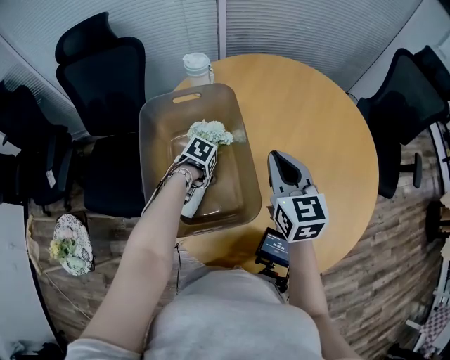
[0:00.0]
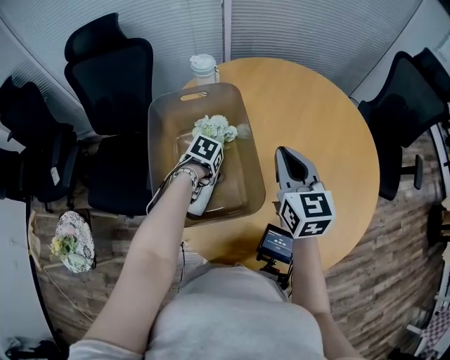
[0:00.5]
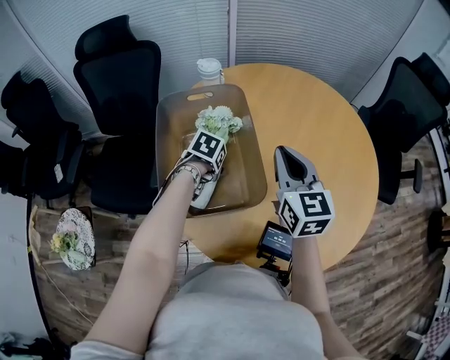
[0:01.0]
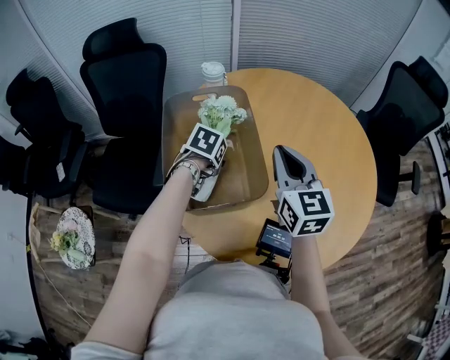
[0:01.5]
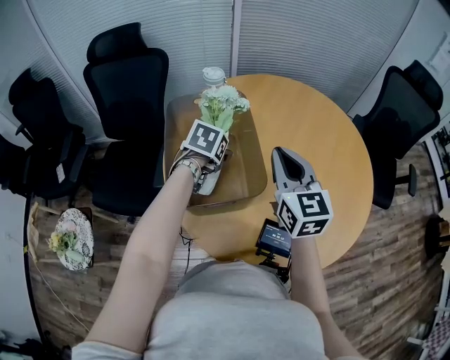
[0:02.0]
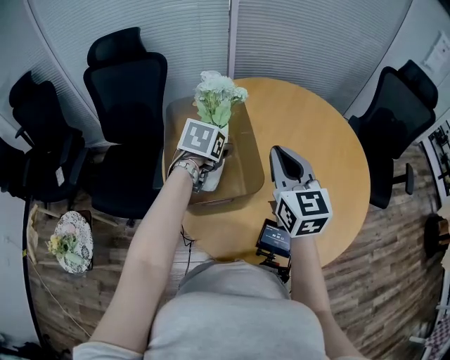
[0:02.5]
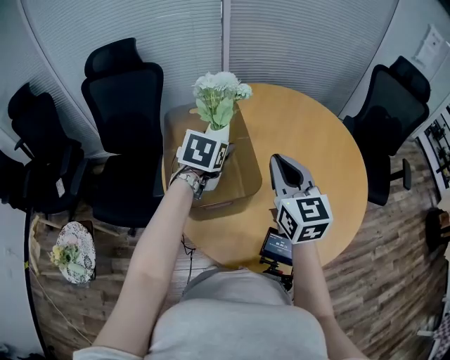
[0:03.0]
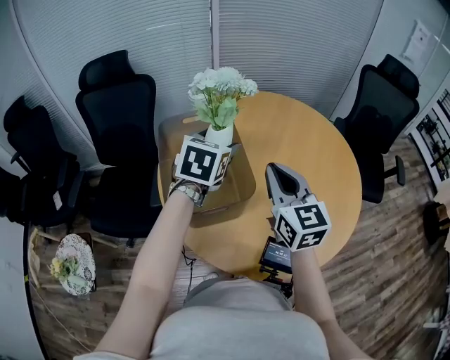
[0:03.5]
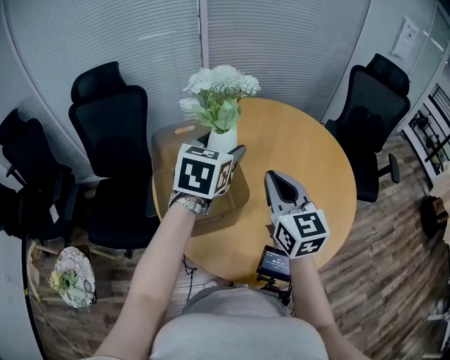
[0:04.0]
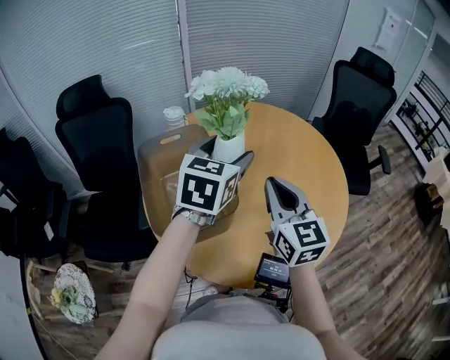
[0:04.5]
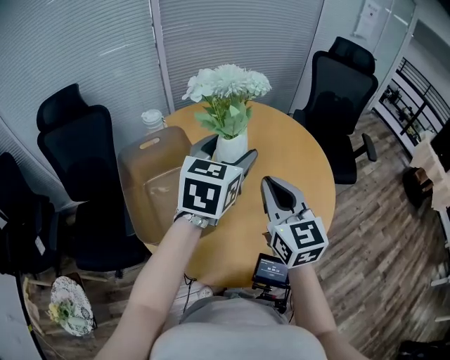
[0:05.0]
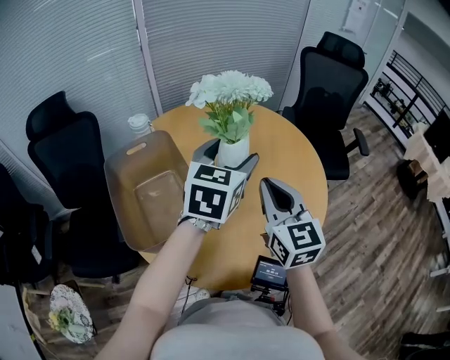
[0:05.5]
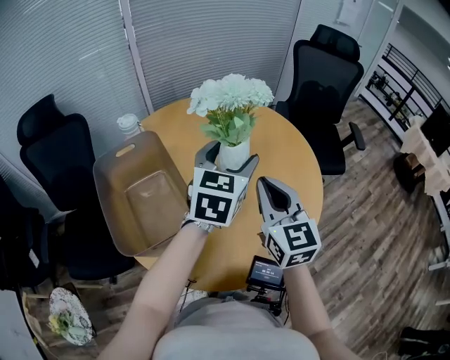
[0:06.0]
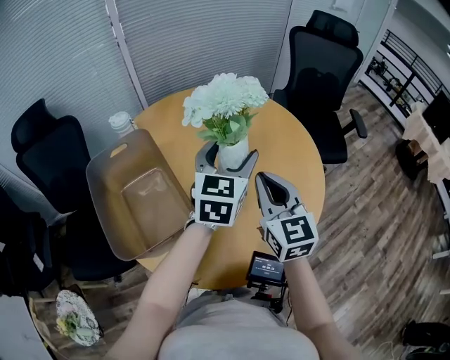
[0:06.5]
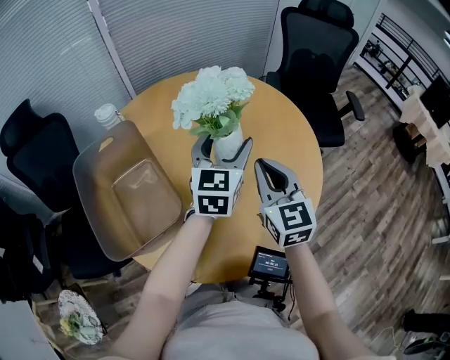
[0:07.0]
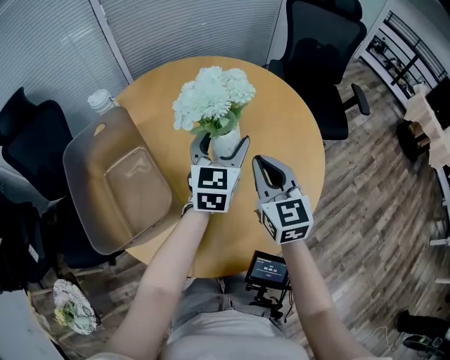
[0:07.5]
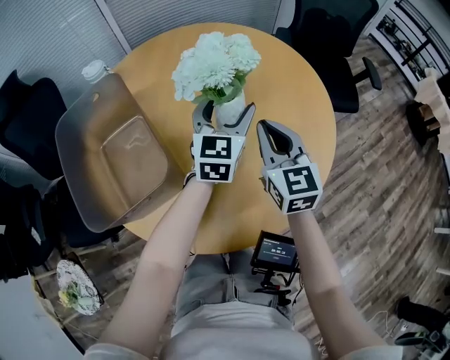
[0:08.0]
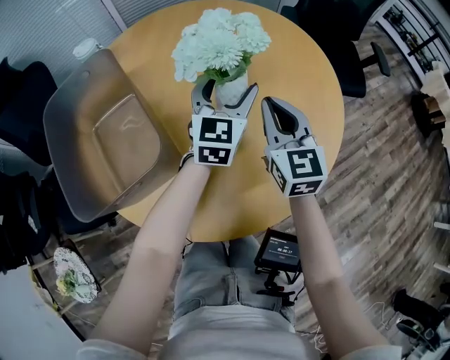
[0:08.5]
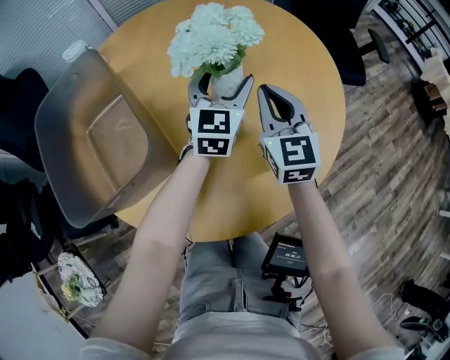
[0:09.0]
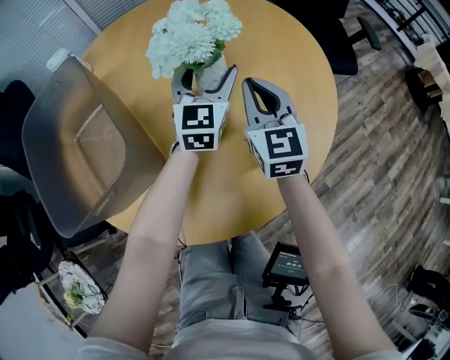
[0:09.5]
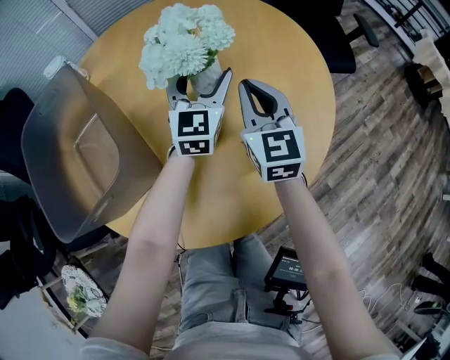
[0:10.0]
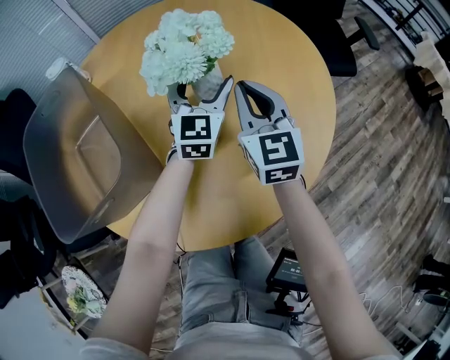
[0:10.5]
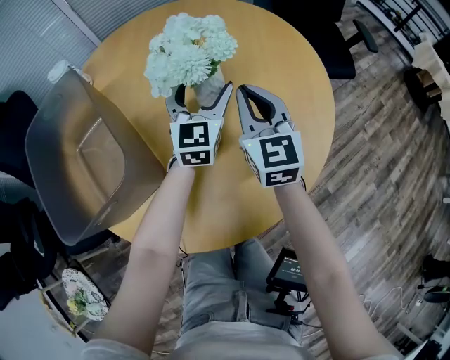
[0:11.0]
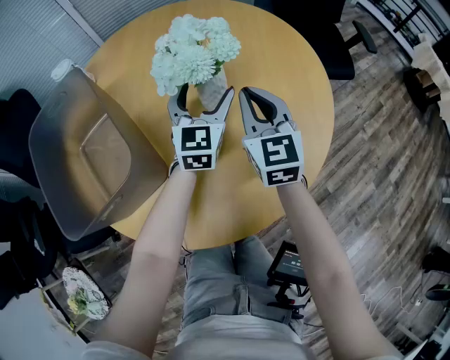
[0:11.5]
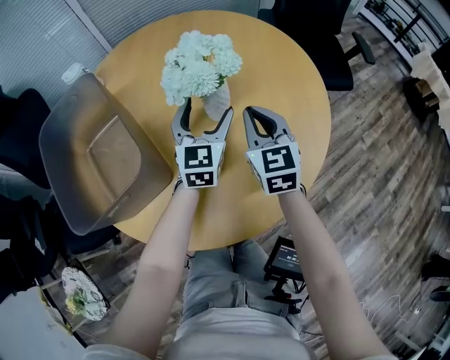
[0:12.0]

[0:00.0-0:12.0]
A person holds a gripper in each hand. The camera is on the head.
0:00.0 to 0:02.0: The left gripper heads upward, covering roughly 15 cm, and turns by approximately 30 degrees. The right gripper shifts approximately 5 cm upward.
0:02.0 to 0:04.0: The left gripper moves upward and to the right, some 20 cm, and tips its fingers upward by approximately 30 degrees; the right gripper moves backward, roughly 5 cm.
0:04.0 to 0:06.0: The right gripper shifts approximately 10 cm to the right. The left gripper moves to the right, about 20 cm.
0:06.0 to 0:08.0: The right gripper shifts about 15 cm downward and forward. Meanwhile the left gripper heads downward, covering roughly 15 cm.
0:08.0 to 0:10.0: The grippers both shift downward by approximately 5 cm.
0:10.0 to 0:12.0: The left gripper shifts by approximately 5 cm.

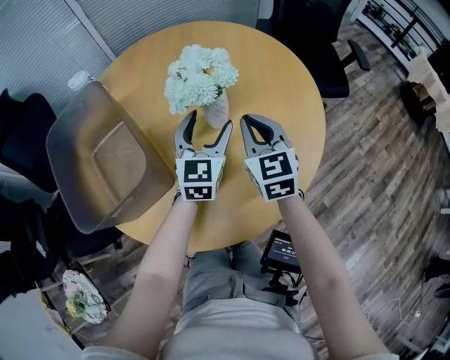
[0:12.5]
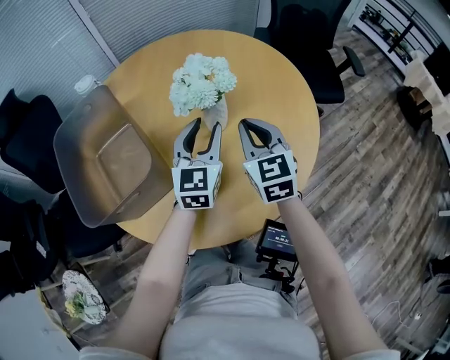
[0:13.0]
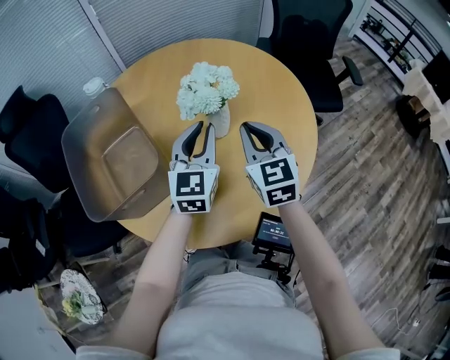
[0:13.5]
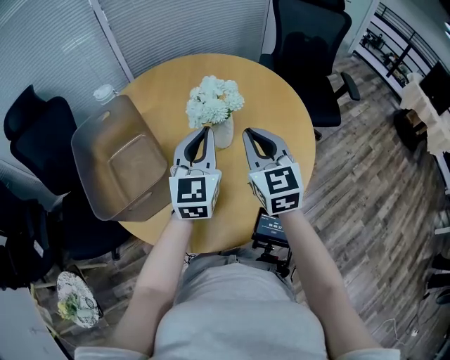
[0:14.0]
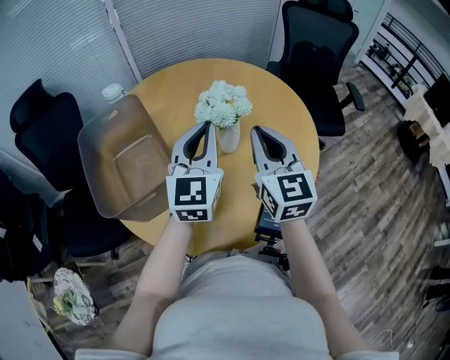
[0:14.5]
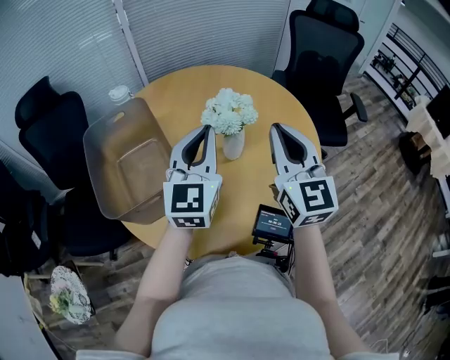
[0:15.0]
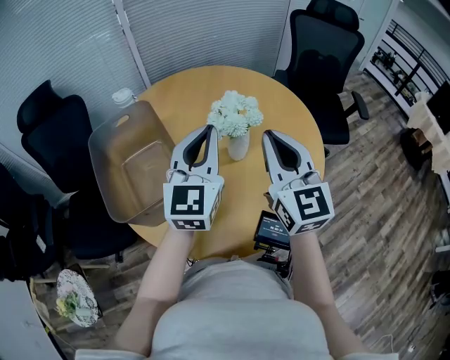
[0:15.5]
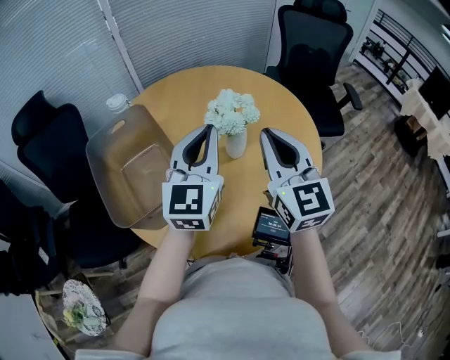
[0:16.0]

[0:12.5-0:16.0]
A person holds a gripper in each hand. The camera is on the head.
0:12.5 to 0:14.5: Both grippers travel together upward, roughly 15 cm. The left gripper closes.
0:14.5 to 0:16.0: The right gripper shifts roughly 5 cm upward.

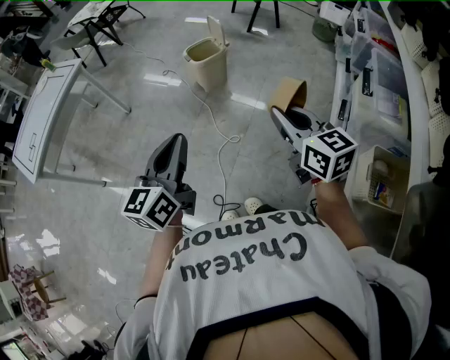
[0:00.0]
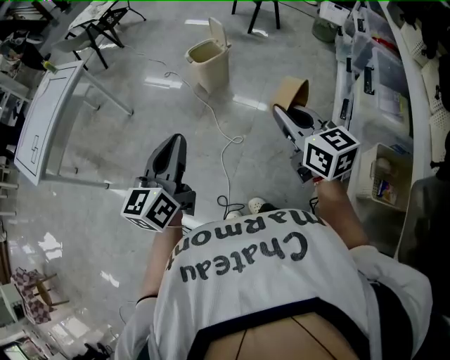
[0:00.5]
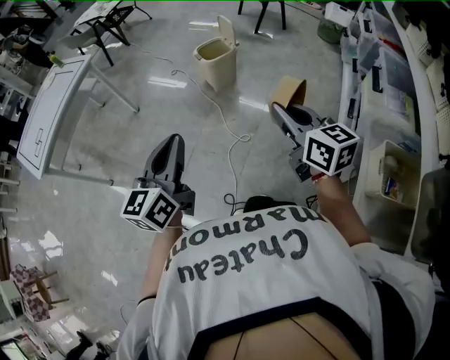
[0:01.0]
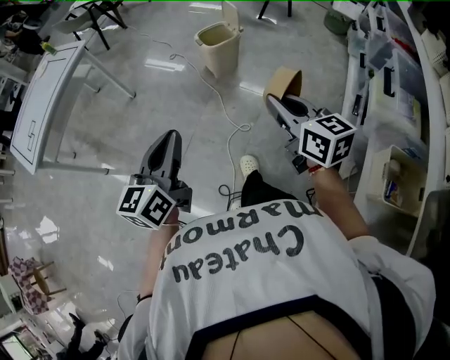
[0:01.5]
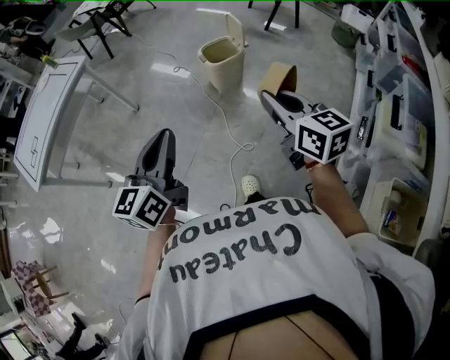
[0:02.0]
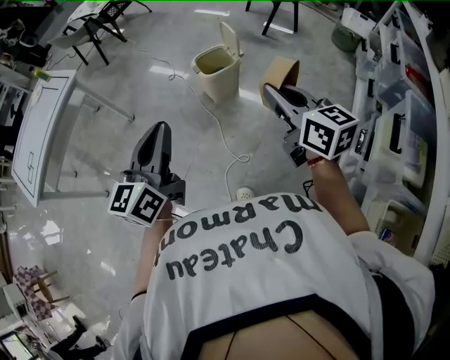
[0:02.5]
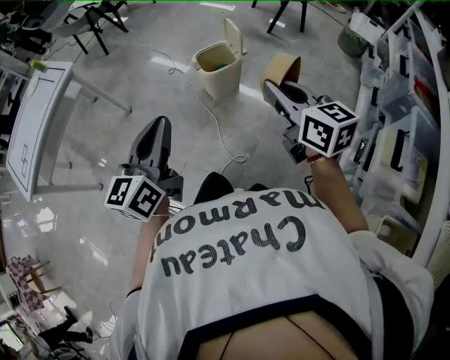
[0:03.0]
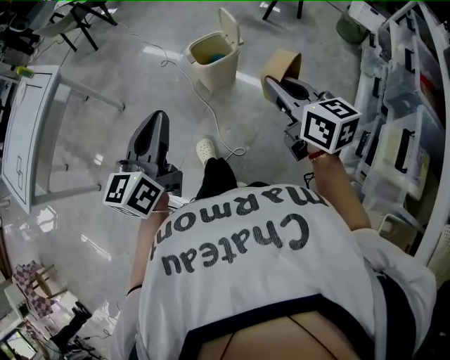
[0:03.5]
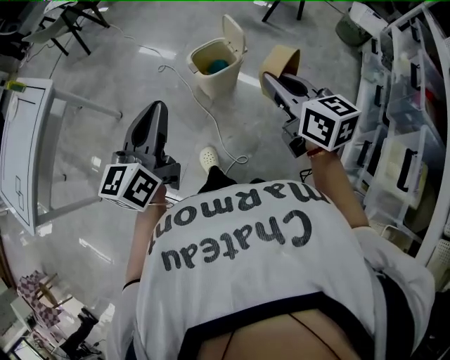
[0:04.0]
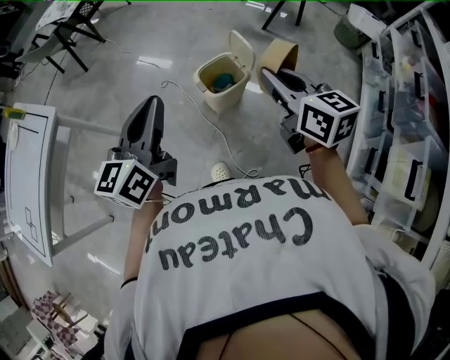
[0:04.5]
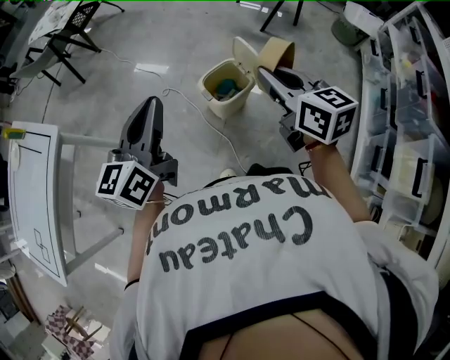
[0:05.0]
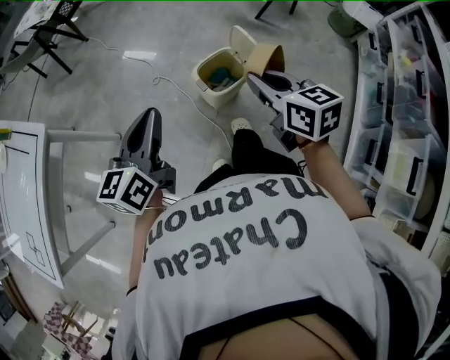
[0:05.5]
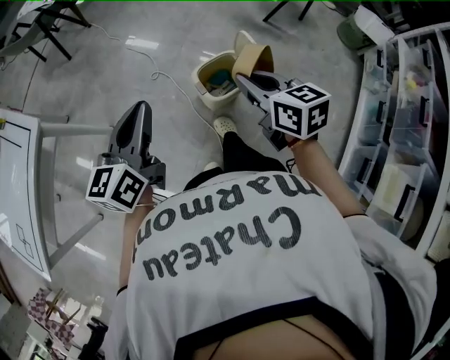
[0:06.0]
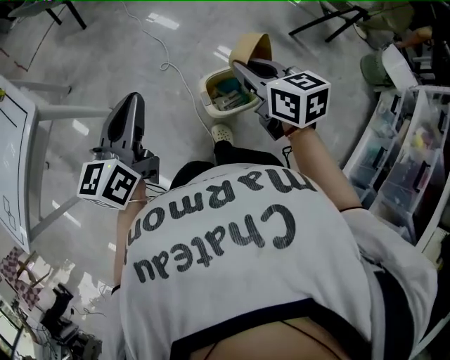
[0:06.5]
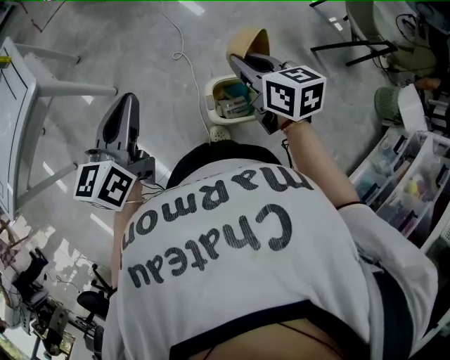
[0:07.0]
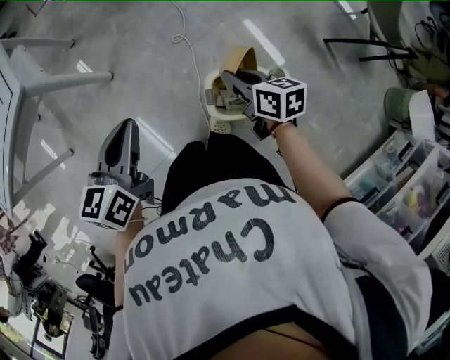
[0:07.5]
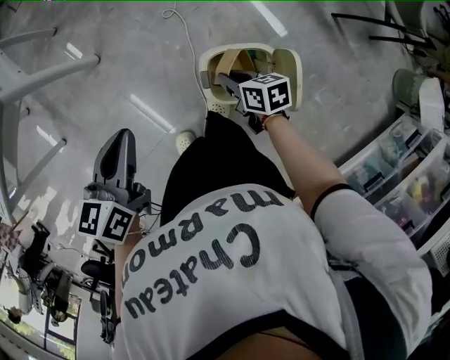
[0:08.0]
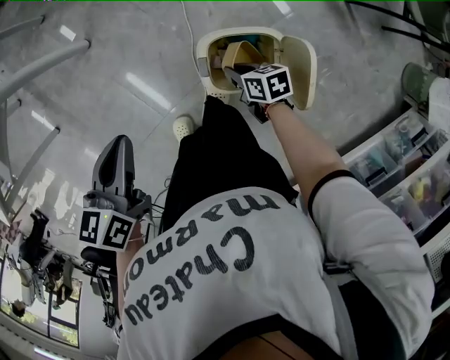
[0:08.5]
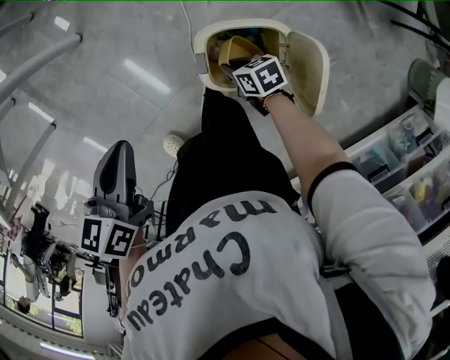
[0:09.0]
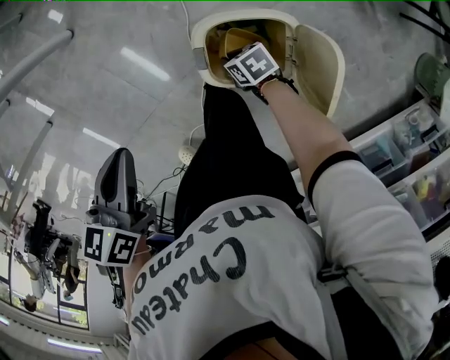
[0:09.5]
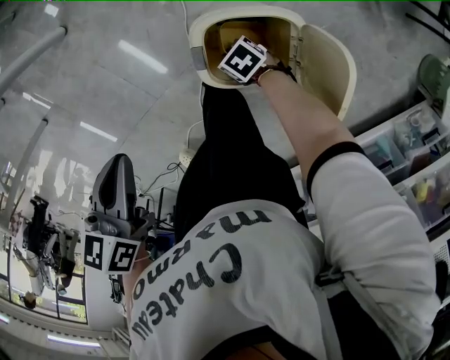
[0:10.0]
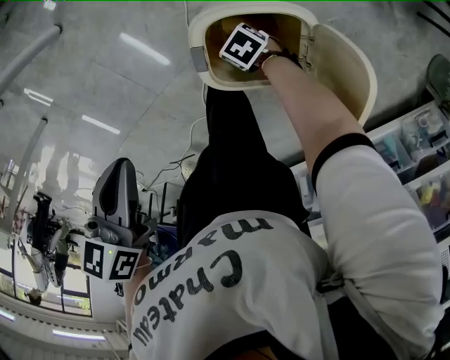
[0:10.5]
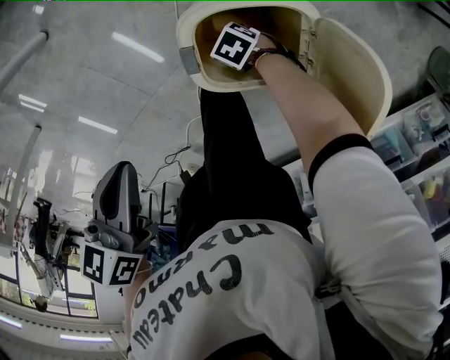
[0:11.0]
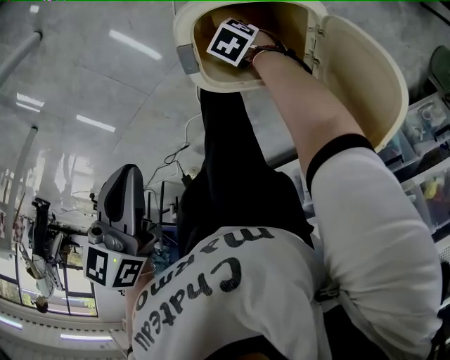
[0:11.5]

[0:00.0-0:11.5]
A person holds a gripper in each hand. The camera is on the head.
0:00.0 to 0:02.0: The two grippers go about 15 cm forward and to the left.
0:02.0 to 0:04.0: Both grippers travel together forward, approximately 30 cm.
0:04.0 to 0:06.0: The two grippers go about 25 cm forward and to the left.
0:06.0 to 0:07.5: The right gripper ends up approximately 30 cm from where it was, and swivels approximately 30 degrees. Meanwhile the left gripper shifts by approximately 15 cm, and swivels about 30 degrees.
0:07.5 to 0:09.5: The left gripper goes approximately 15 cm downward, and swivels about 30 degrees, while the right gripper goes approximately 35 cm downward, and swivels some 40 degrees.
0:09.5 to 0:11.5: Both grippers move downward, about 10 cm. The right gripper turns by roughly 30 degrees.
